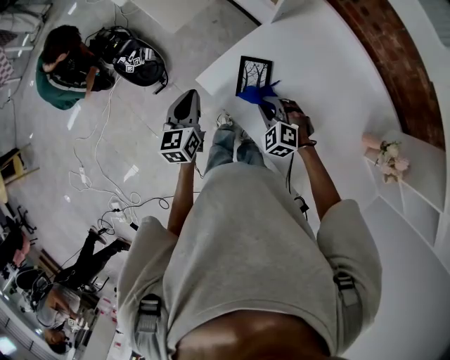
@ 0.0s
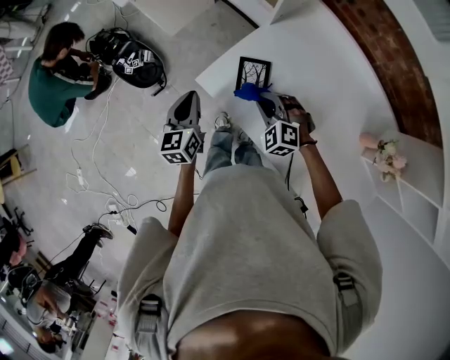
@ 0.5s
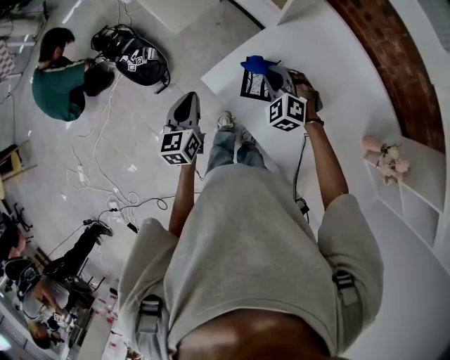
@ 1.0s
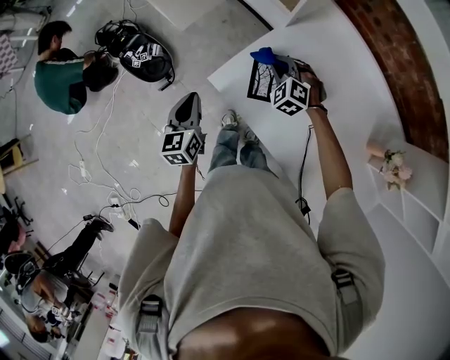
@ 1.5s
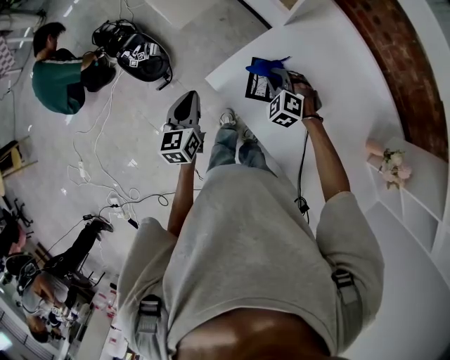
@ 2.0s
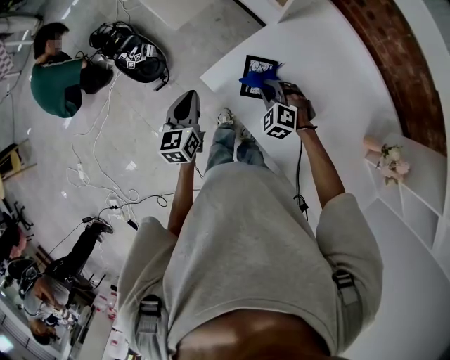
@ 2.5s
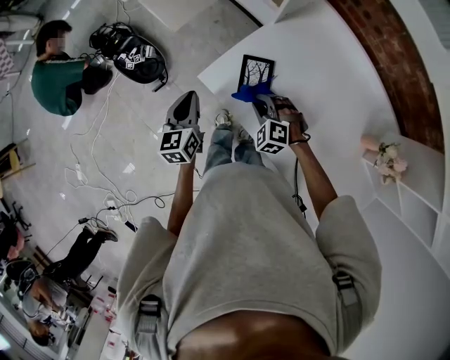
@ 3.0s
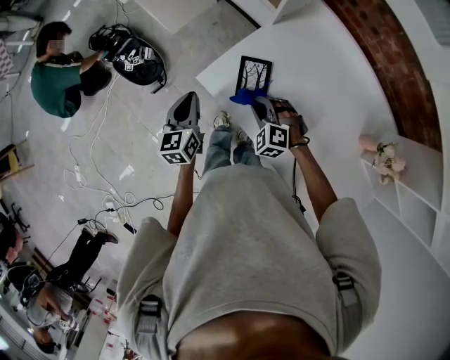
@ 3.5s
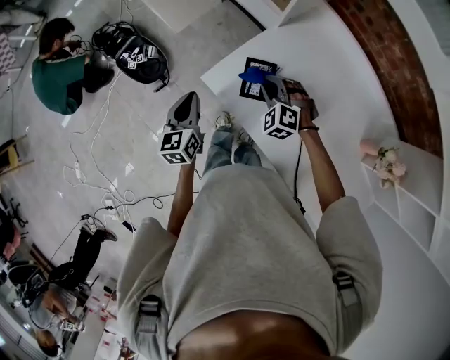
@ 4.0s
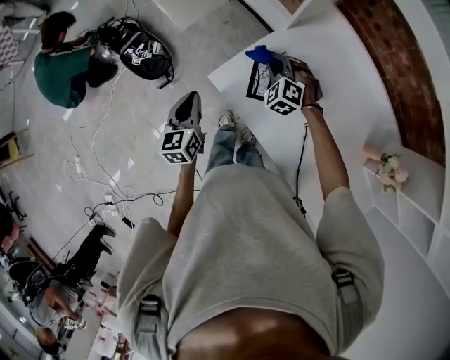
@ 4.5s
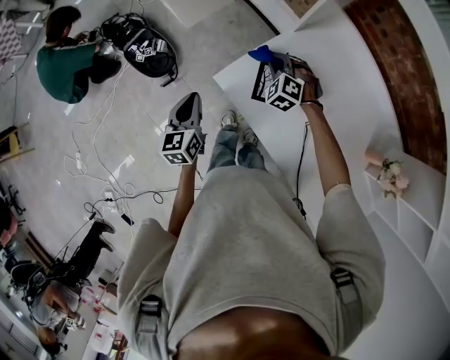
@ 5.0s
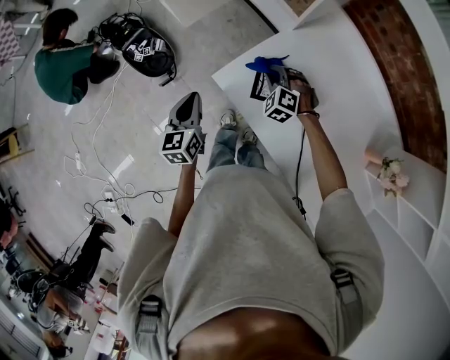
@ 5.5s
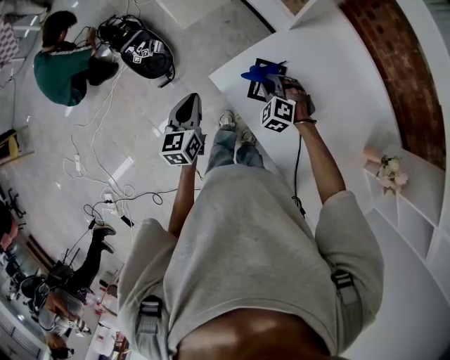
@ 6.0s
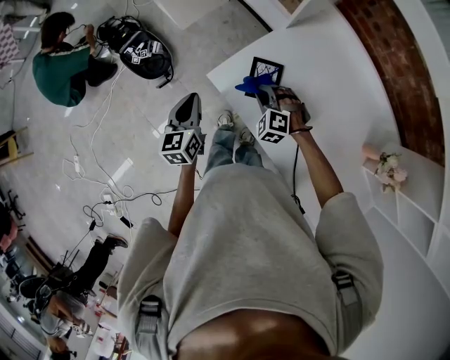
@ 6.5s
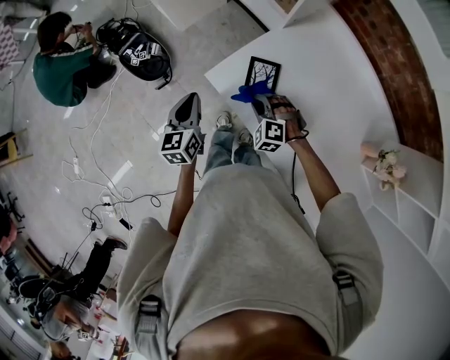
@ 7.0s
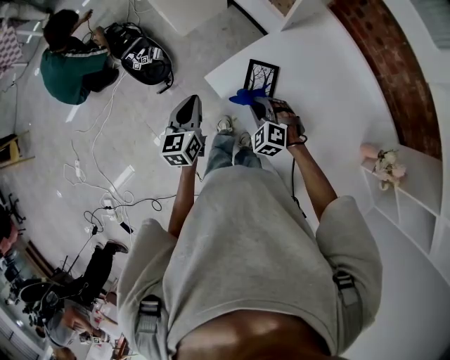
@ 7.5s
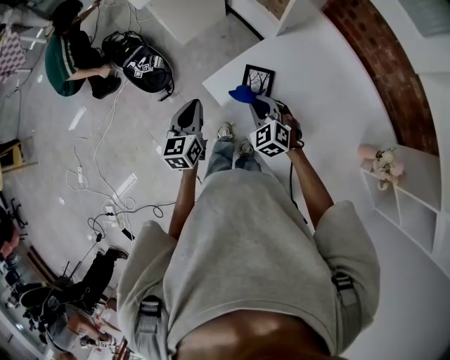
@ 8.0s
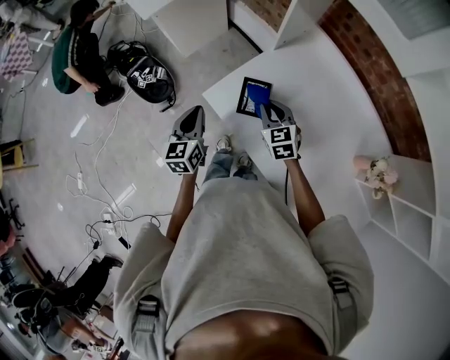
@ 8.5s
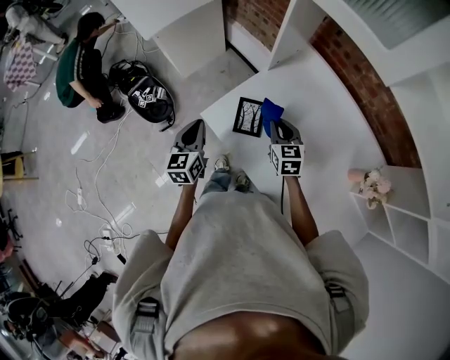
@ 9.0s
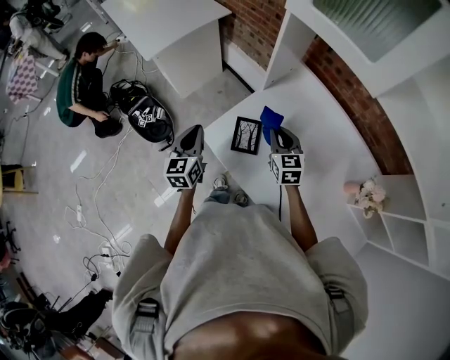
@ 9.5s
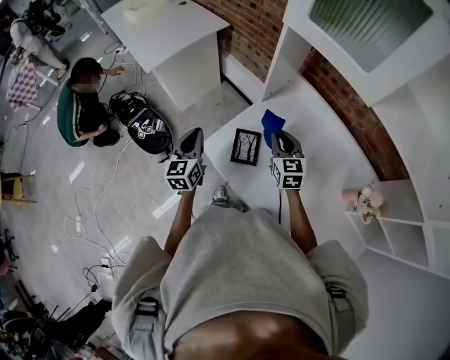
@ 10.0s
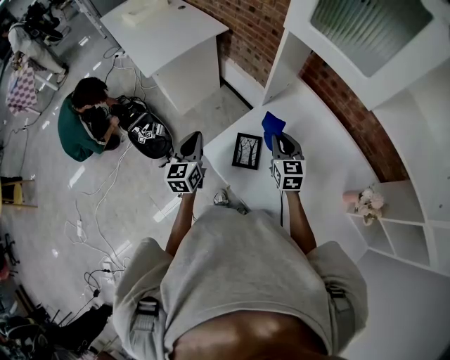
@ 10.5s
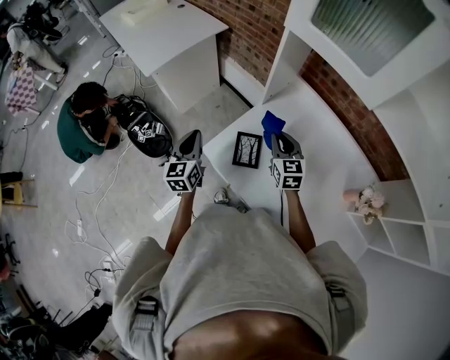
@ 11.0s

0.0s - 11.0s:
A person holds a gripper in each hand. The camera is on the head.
0.0s - 2.0s: The right gripper goes approximately 10 cm forward.
2.0s - 3.5s: The right gripper travels backward by about 10 cm.
3.5s - 5.5s: The right gripper shifts roughly 10 cm forward.
5.5s - 7.5s: The right gripper travels backward by roughly 10 cm.
7.5s - 9.0s: The left gripper shifts by approximately 5 cm. The right gripper heads to the right and upward, covering about 15 cm, and rotates around the line of its fingers by roughly 60 degrees, clockwise from behind.
9.0s - 11.0s: The right gripper shifts about 5 cm upward, while the left gripper is displaced forward by approximately 5 cm.

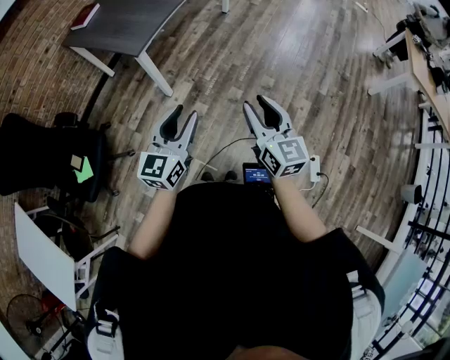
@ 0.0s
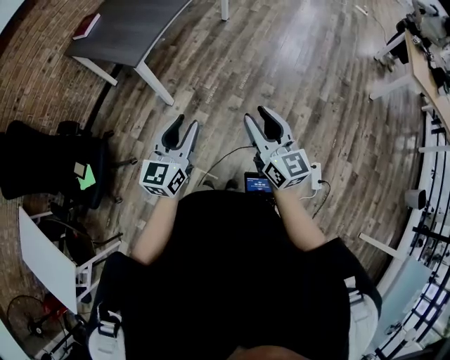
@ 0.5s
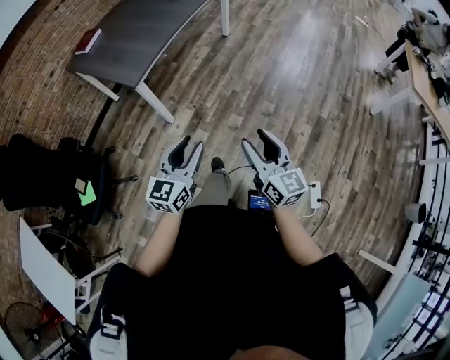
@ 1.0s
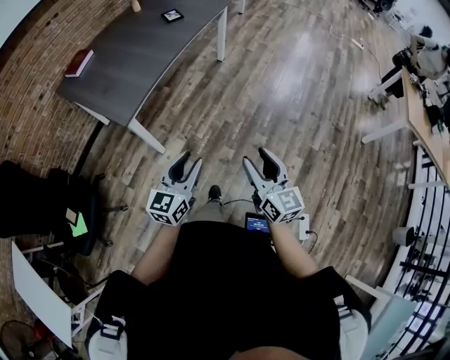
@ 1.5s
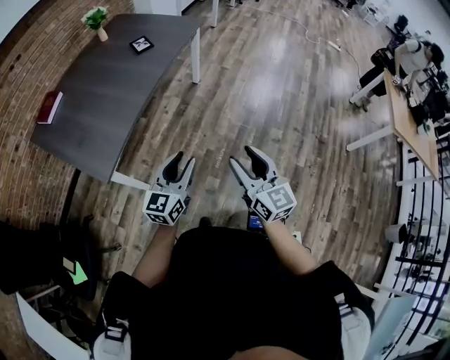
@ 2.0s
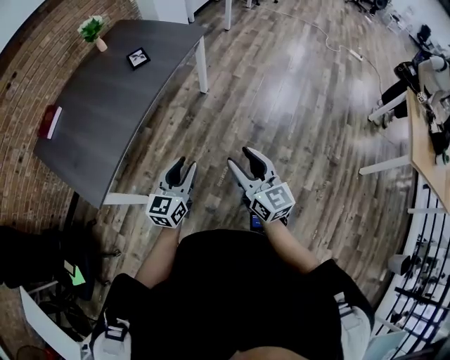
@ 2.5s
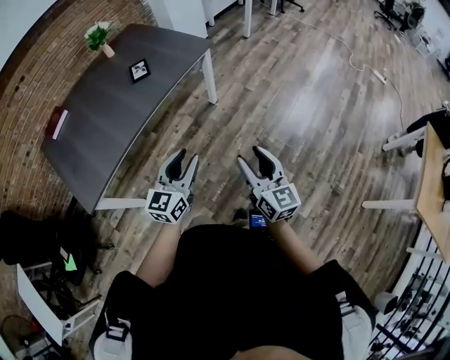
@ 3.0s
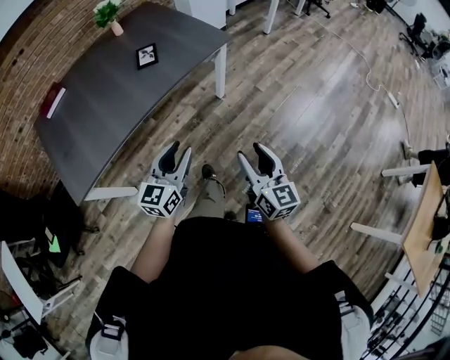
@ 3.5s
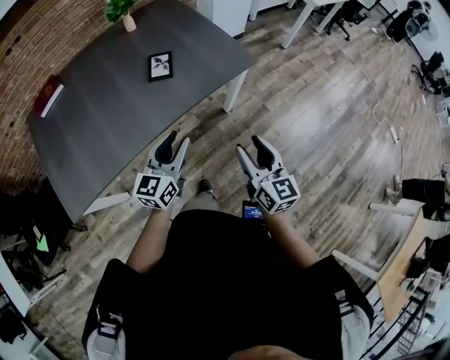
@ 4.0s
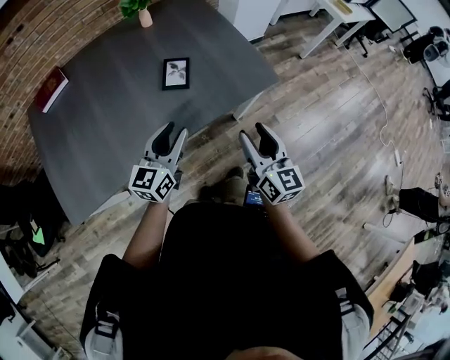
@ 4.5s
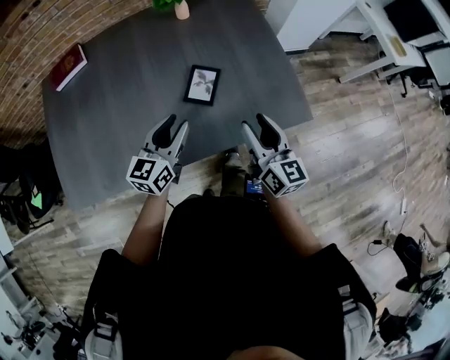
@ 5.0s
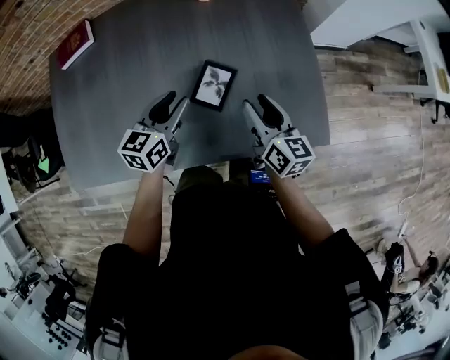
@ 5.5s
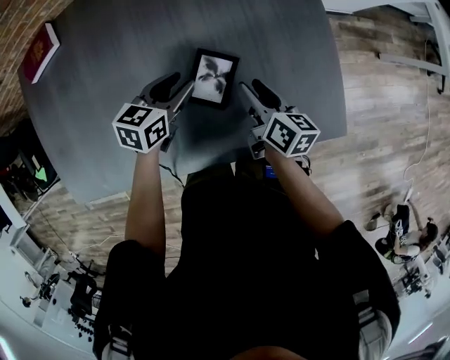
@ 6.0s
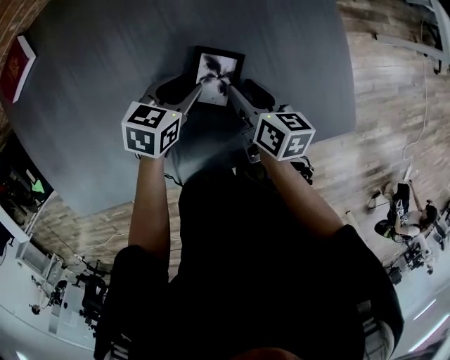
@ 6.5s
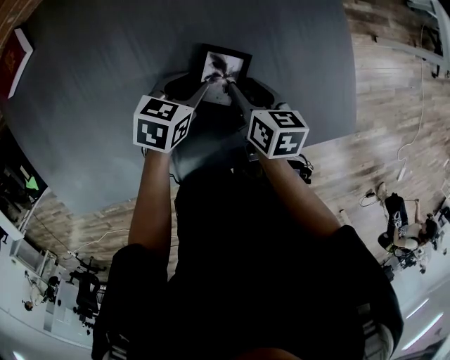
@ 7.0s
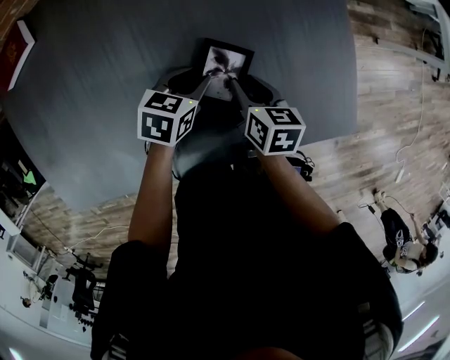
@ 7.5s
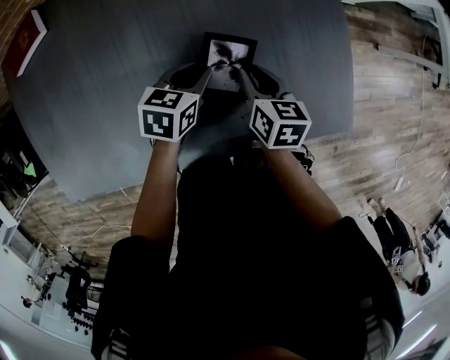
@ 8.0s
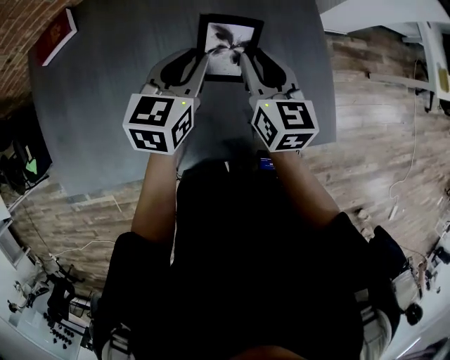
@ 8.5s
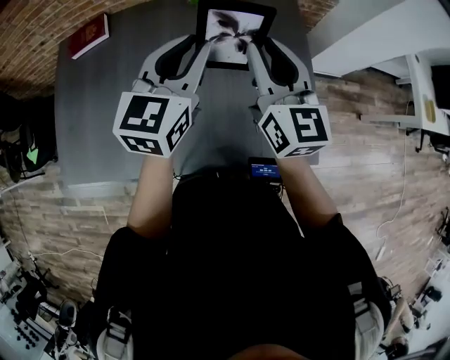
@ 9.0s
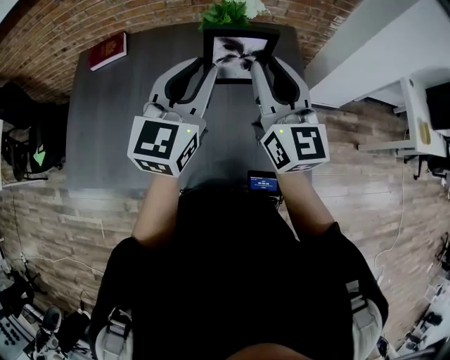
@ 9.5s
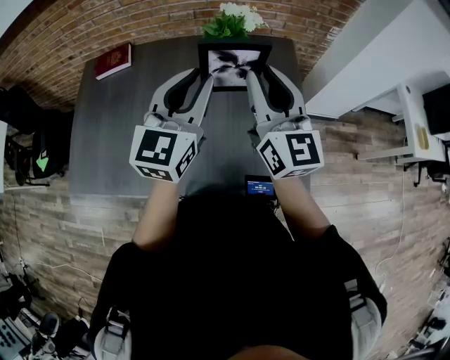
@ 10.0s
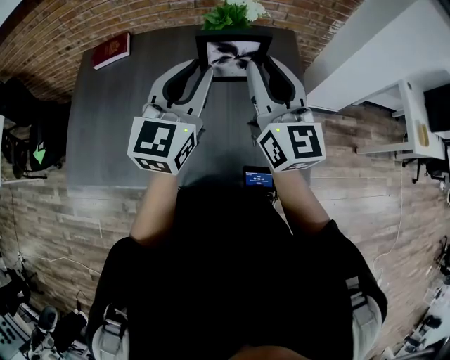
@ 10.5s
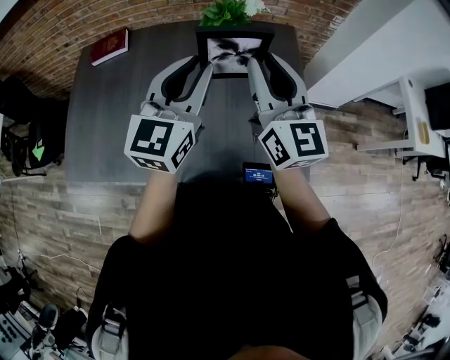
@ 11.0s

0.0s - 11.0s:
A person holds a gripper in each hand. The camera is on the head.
0.0s - 2.0s: The two grippers travel together, forward, roughly 40 cm.
2.0s - 3.5s: The two grippers travel together, forward and to the right, some 40 cm. The left gripper rotates roughly 20 degrees.
3.5s - 5.5s: The pair of grippers is taken some 70 cm. The left gripper changes its angle by some 40 degrees, while the right gripper swivels approximately 40 degrees.
5.5s - 7.5s: The right gripper travels downward and to the left by roughly 20 cm, and tilts its fingers about 30 degrees downward. The left gripper heads downward, covering about 20 cm, and turns by roughly 30 degrees.
7.5s - 9.0s: The two grippers go about 40 cm upward. The left gripper points its fingers about 40 degrees further upward, while the right gripper angles its fingers upward, by about 50 degrees.
9.0s - 11.0s: The right gripper heads upward, covering some 5 cm. Meanwhile the left gripper is displaced upward and backward by roughly 10 cm.

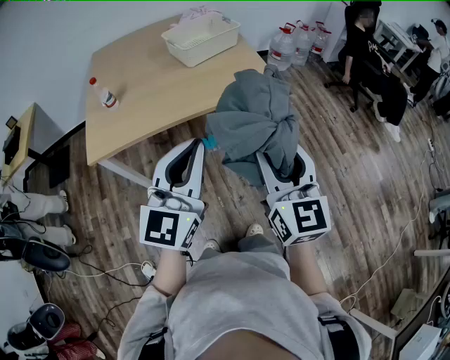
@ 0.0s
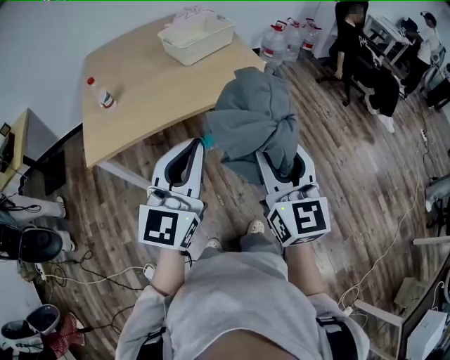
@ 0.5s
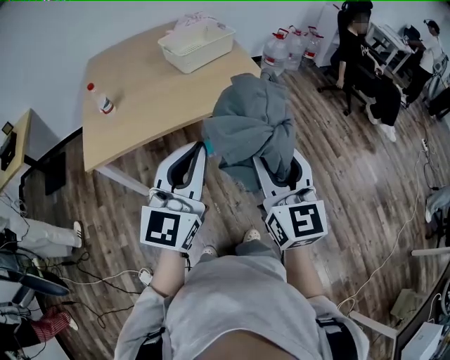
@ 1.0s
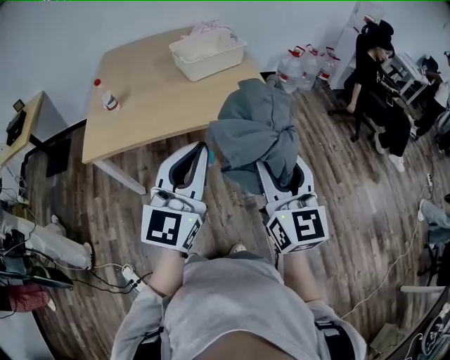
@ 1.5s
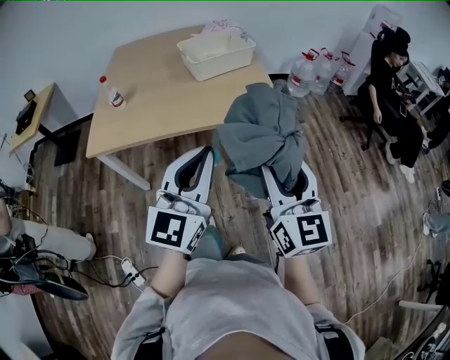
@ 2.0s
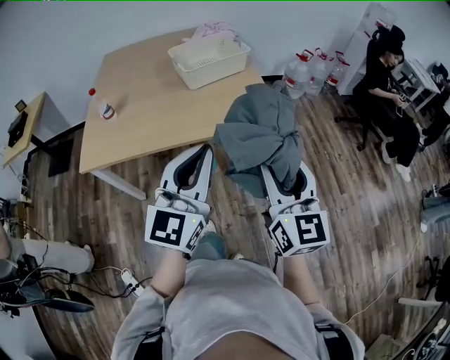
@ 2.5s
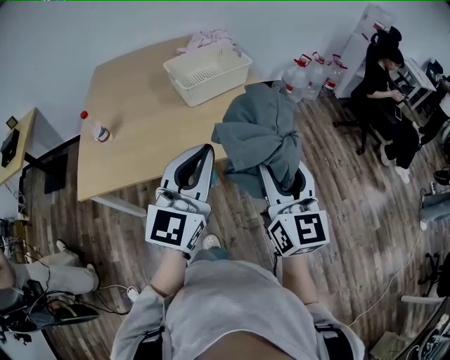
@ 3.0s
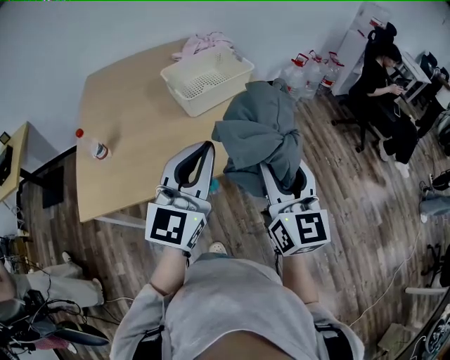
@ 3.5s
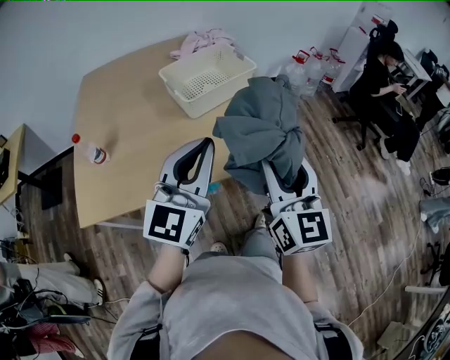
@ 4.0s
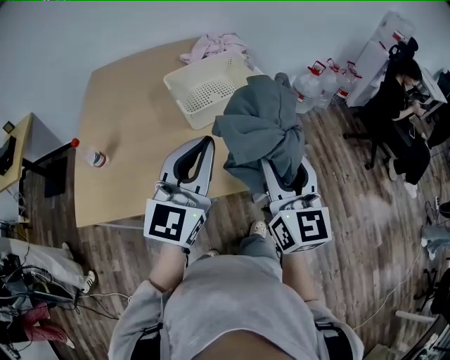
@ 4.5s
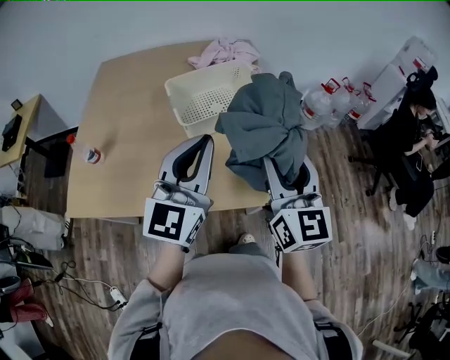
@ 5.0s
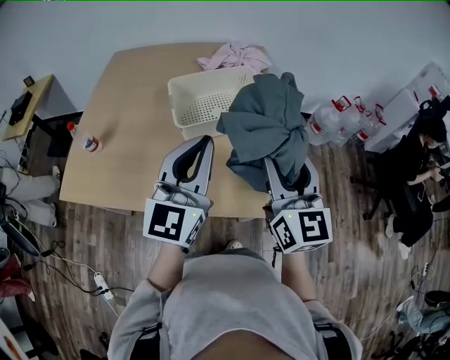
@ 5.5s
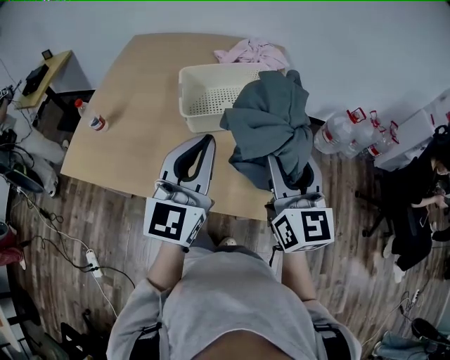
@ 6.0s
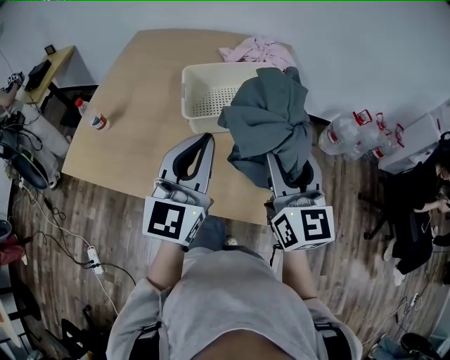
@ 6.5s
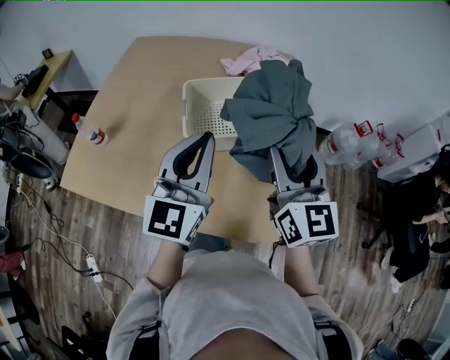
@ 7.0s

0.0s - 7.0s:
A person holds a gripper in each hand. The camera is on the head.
0.0s - 2.0s: The left gripper shifts approximately 10 cm to the right, while the right gripper shifts roughly 10 cm to the right and forward.
2.0s - 3.5s: The left gripper shifts approximately 25 cm forward. Meanwhile the right gripper goes roughly 25 cm forward and to the left.
3.5s - 5.0s: Both grippers move forward, some 15 cm.
5.0s - 7.0s: Both grippers travel together forward, approximately 15 cm.
